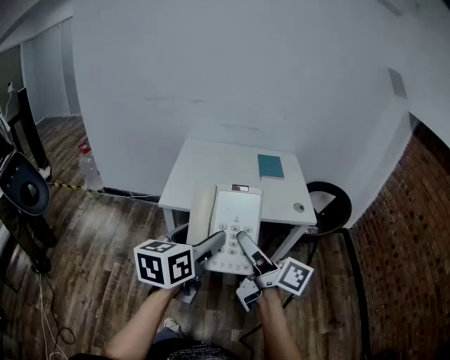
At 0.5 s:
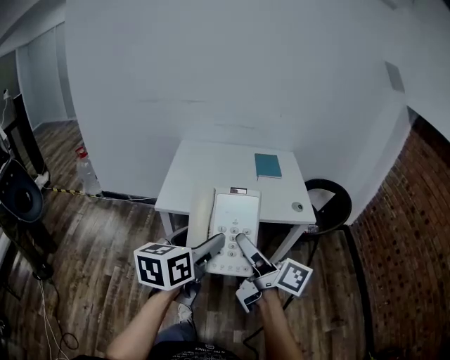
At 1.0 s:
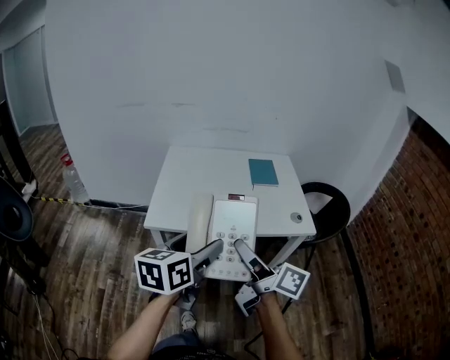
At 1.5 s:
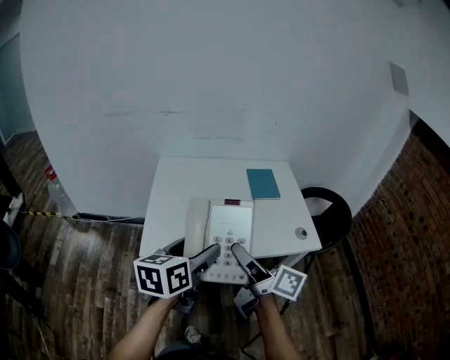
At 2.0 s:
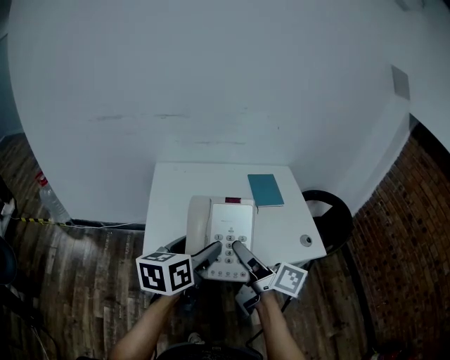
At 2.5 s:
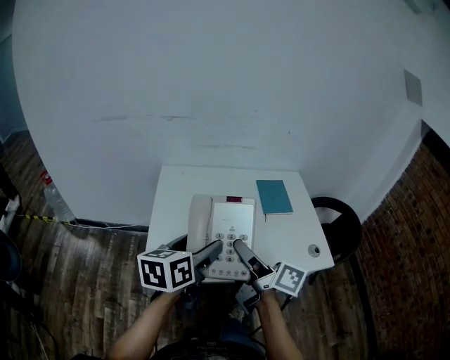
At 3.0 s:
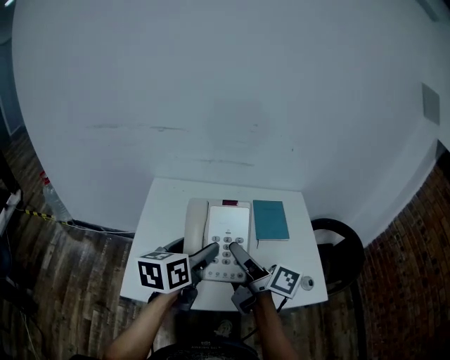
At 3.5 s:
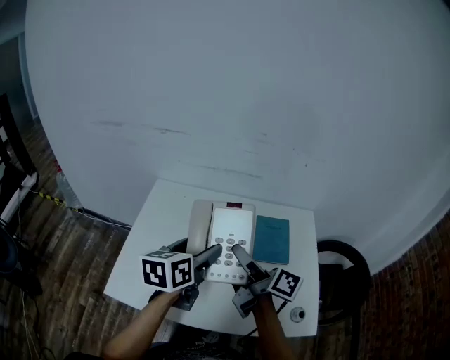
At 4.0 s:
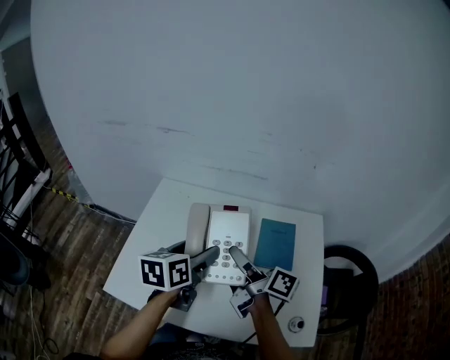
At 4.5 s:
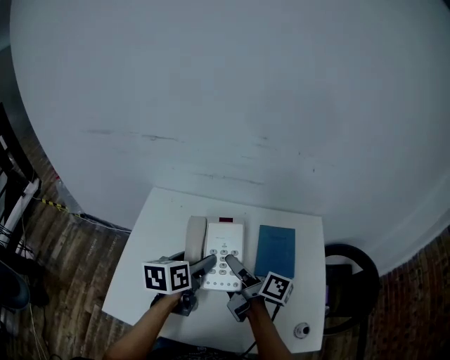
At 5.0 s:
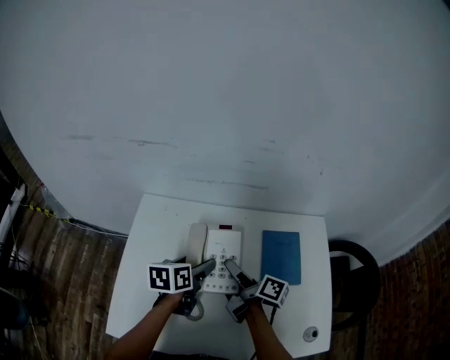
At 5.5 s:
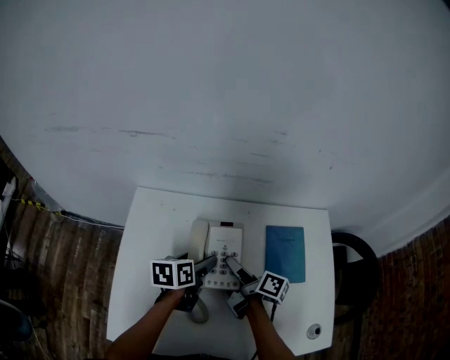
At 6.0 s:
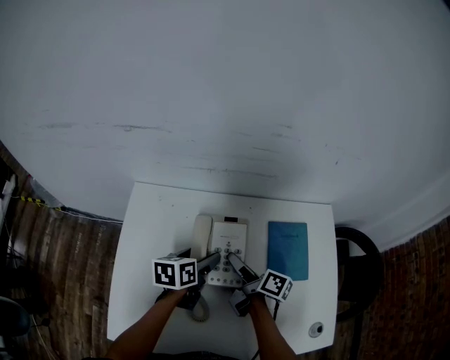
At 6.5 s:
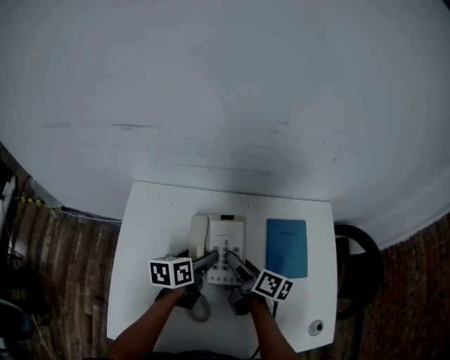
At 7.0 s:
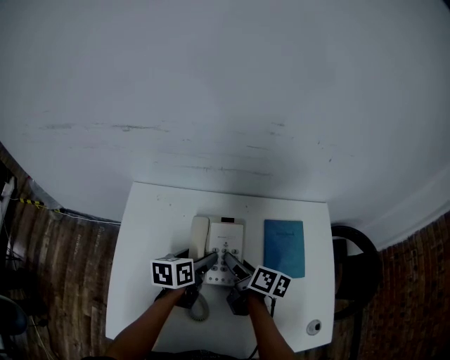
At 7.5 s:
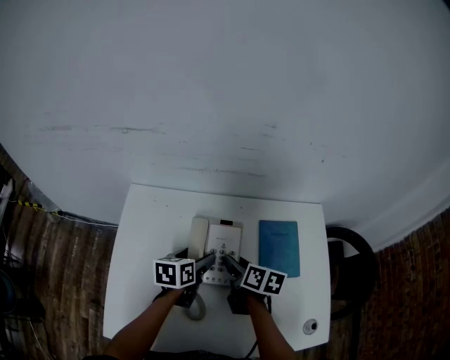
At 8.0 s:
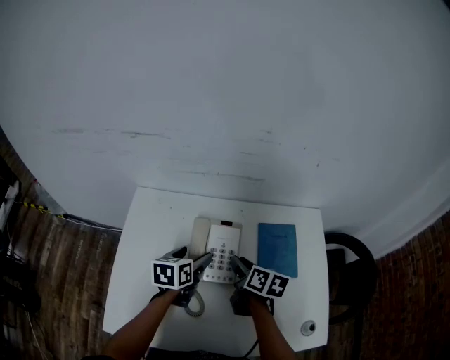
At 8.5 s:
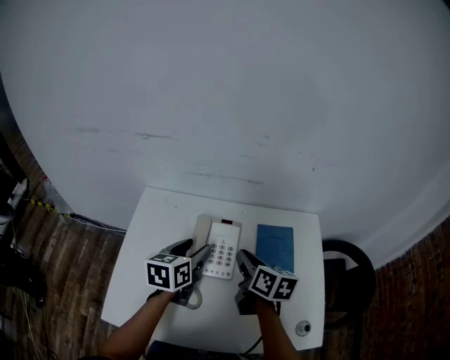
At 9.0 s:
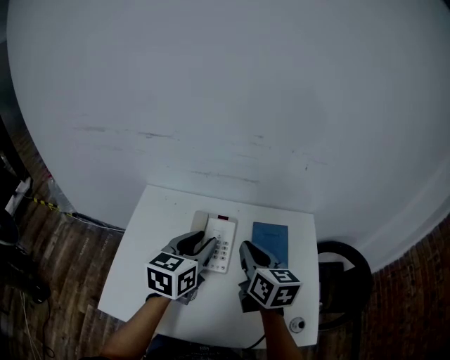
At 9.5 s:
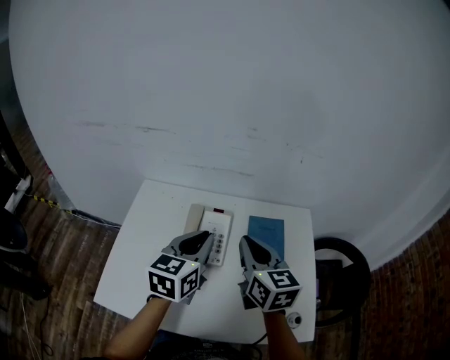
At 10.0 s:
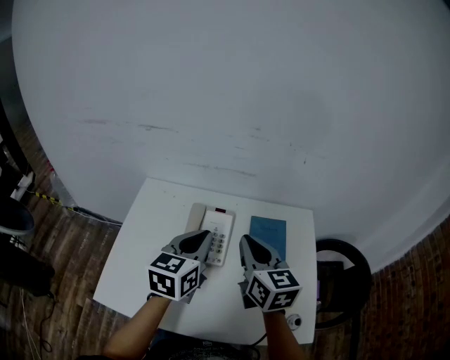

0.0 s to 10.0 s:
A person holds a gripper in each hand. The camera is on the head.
0.0 to 2.0 s: The two grippers go approximately 30 cm forward.
2.0 to 4.0 s: Both grippers travel together forward and to the right, roughly 30 cm. The left gripper swivels roughly 20 degrees; the right gripper turns by roughly 20 degrees.
4.0 to 6.0 s: Both grippers move downward and forward, roughly 20 cm. The right gripper turns by about 20 degrees.
6.0 to 8.0 s: The right gripper changes place by some 5 cm, and rotates approximately 30 degrees.
8.0 to 10.0 s: The right gripper heads upward, covering about 20 cm, turns by about 40 degrees, and closes its fingers. Meanwhile the left gripper moves upward and backward, roughly 20 cm, rotates about 30 degrees, and closes its fingers.

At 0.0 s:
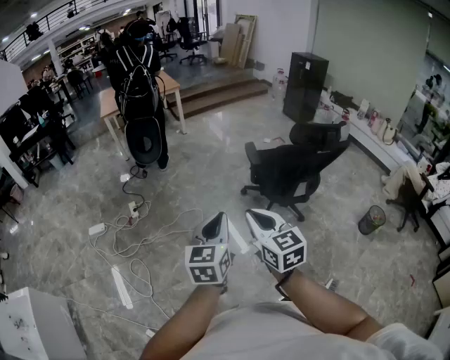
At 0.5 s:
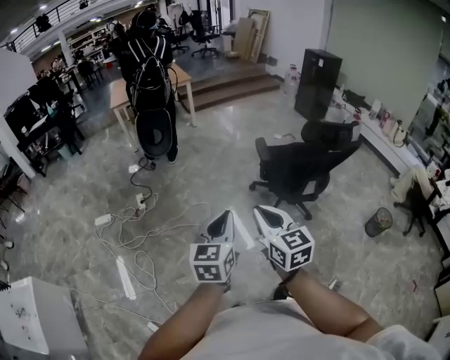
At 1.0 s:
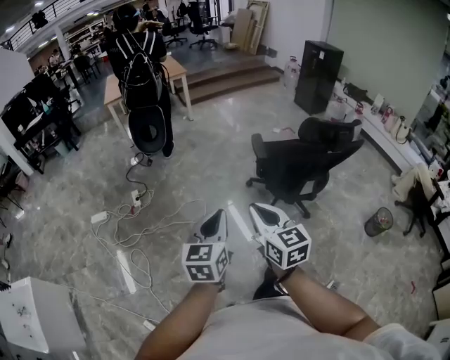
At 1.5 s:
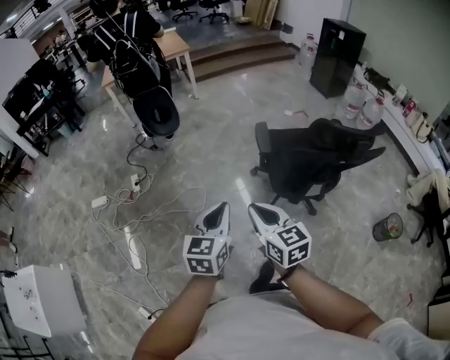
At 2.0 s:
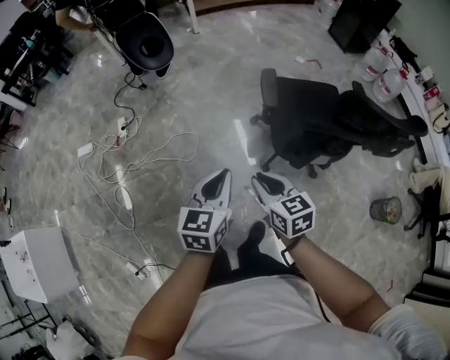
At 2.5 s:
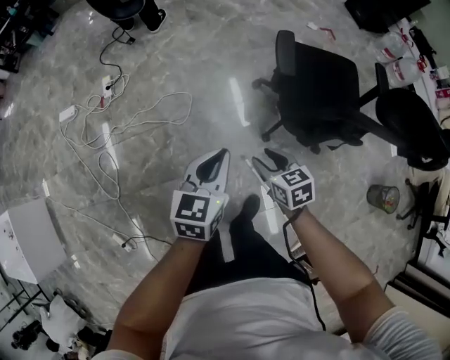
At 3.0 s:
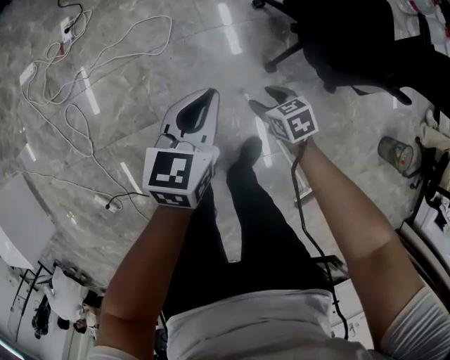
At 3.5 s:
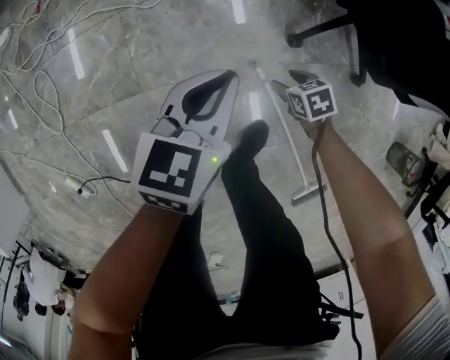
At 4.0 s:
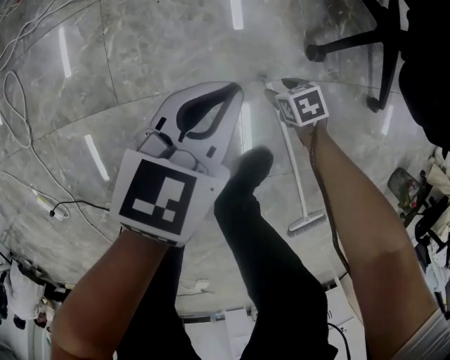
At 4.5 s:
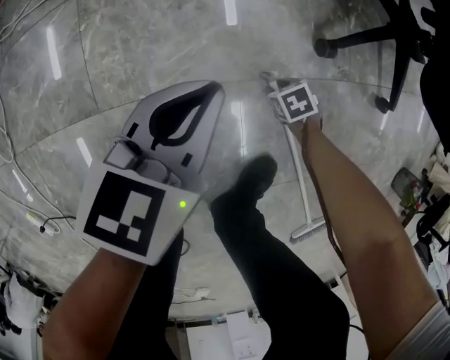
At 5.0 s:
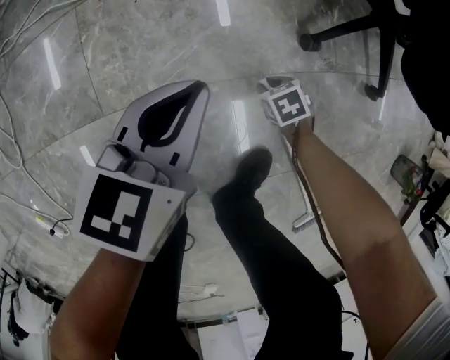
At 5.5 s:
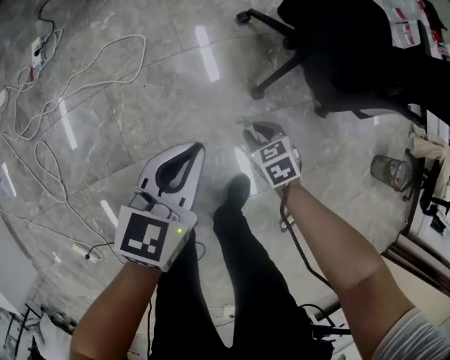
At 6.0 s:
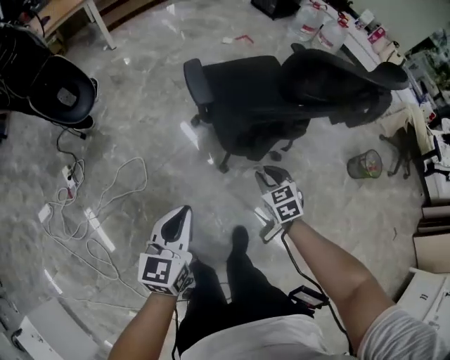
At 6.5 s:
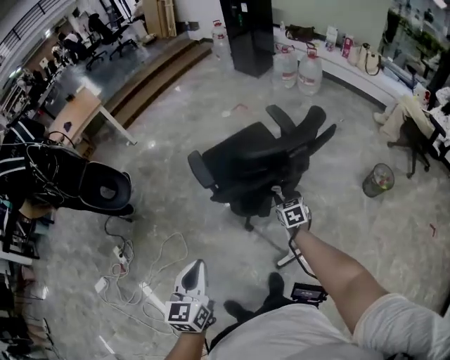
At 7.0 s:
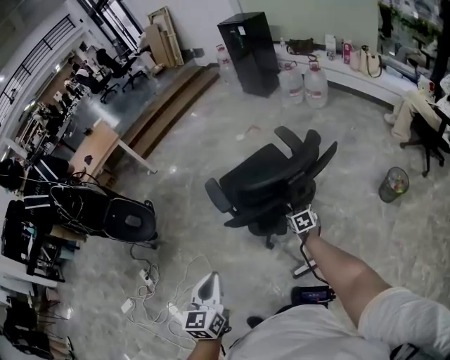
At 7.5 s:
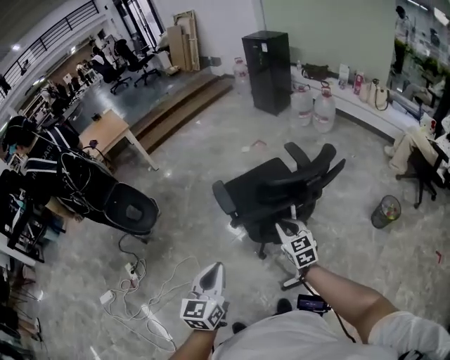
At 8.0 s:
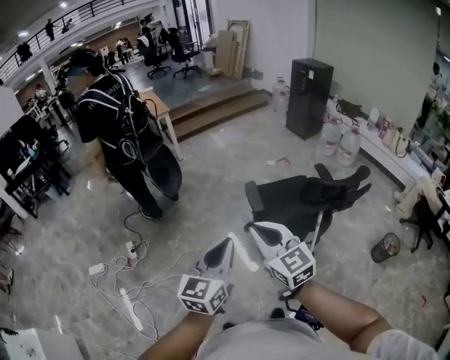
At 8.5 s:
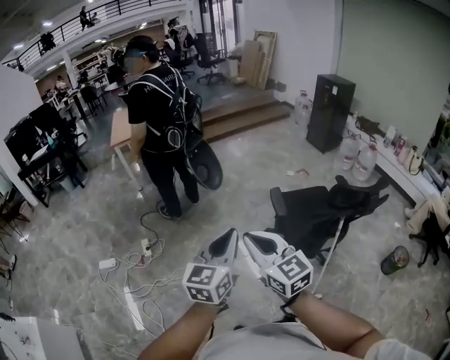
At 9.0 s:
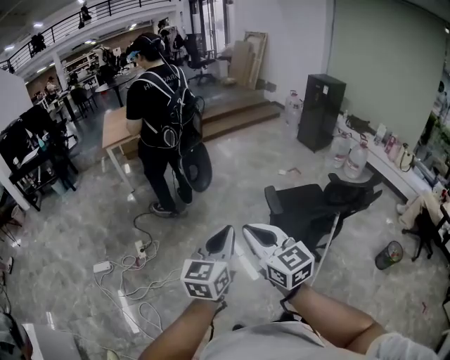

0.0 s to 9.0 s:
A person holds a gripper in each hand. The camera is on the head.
0.0 to 2.0 s: Both grippers move forward, downward and to the right, approximately 40 cm. The right gripper rotates some 30 degrees.
2.0 to 4.5 s: The two grippers go roughly 90 cm downward. The right gripper points its fingers some 50 degrees further downward, and opens up.
4.5 to 7.0 s: Both grippers move upward, about 90 cm. The right gripper angles its fingers upward, by roughly 40 degrees; the left gripper changes its angle by roughly 30 degrees.
7.0 to 9.0 s: The left gripper shifts approximately 35 cm to the left and upward; the right gripper shifts some 70 cm to the left and upward, points its fingers some 40 degrees further upward, and closes up.

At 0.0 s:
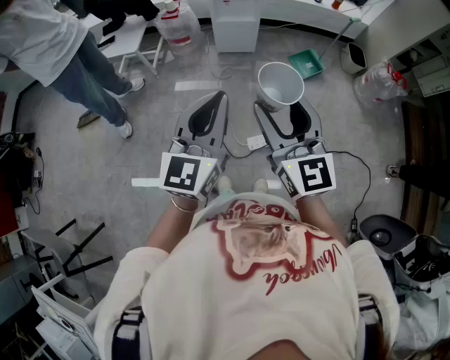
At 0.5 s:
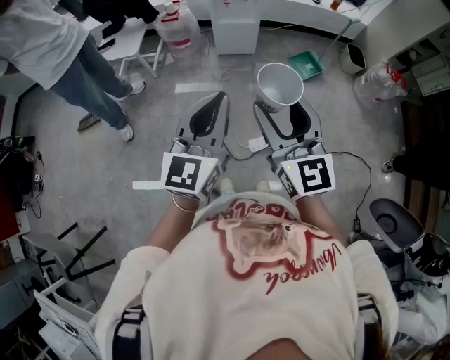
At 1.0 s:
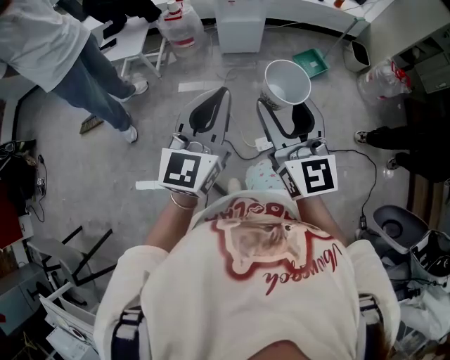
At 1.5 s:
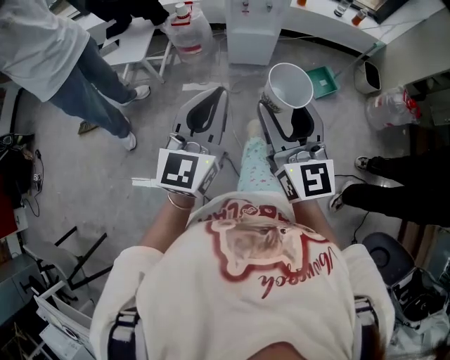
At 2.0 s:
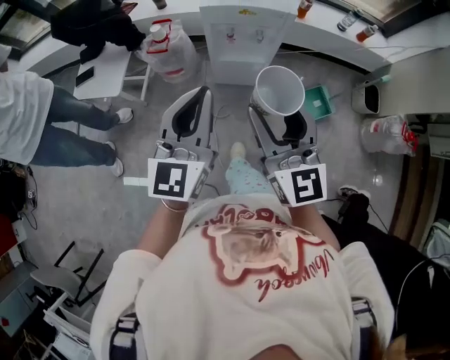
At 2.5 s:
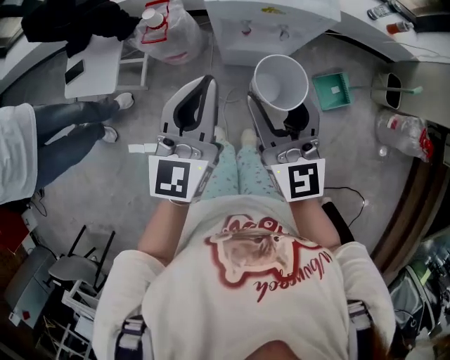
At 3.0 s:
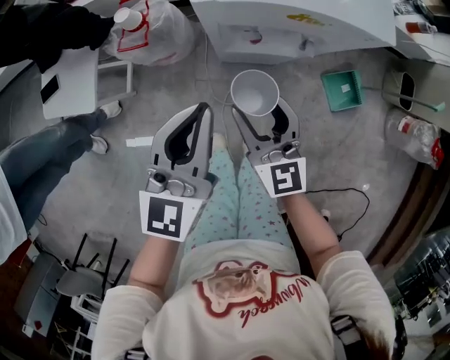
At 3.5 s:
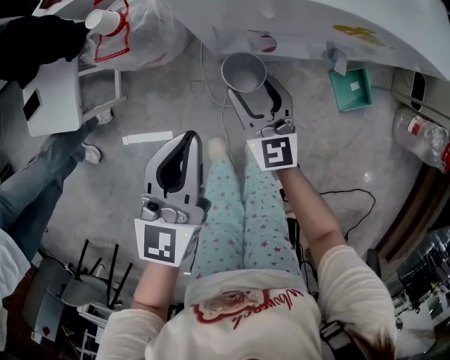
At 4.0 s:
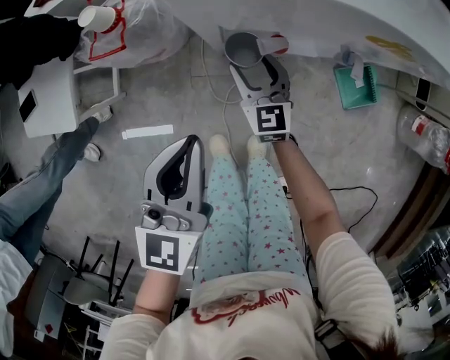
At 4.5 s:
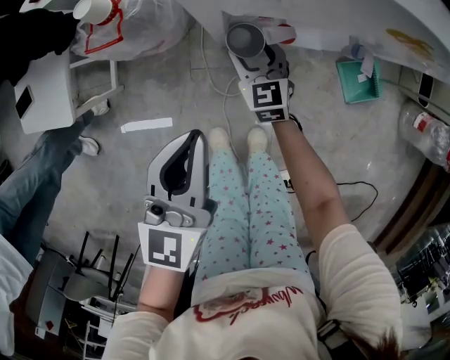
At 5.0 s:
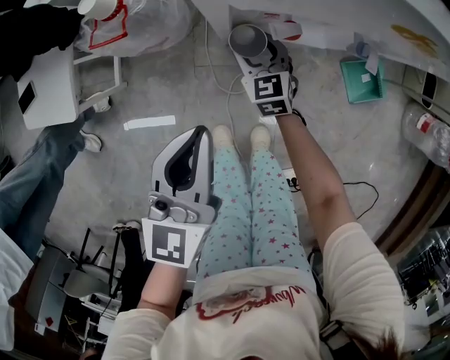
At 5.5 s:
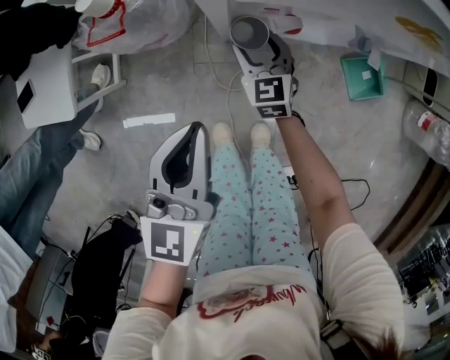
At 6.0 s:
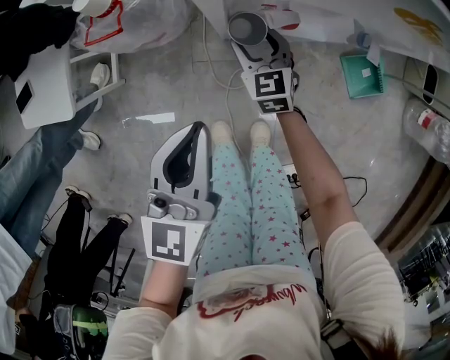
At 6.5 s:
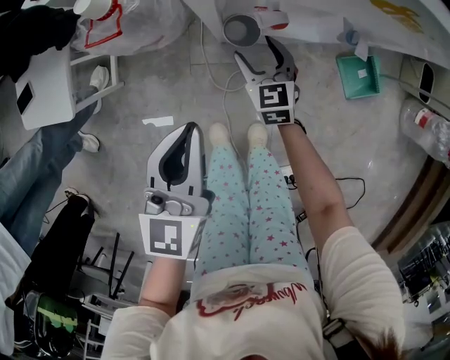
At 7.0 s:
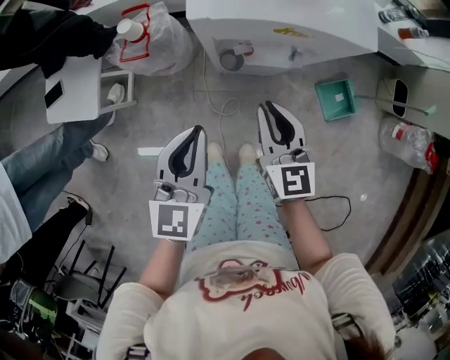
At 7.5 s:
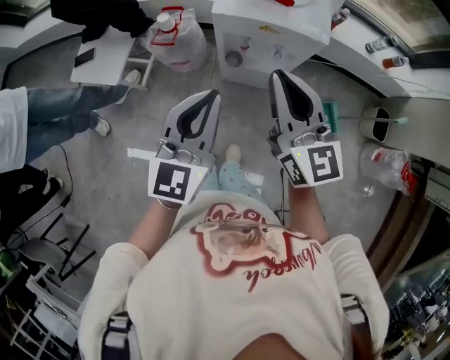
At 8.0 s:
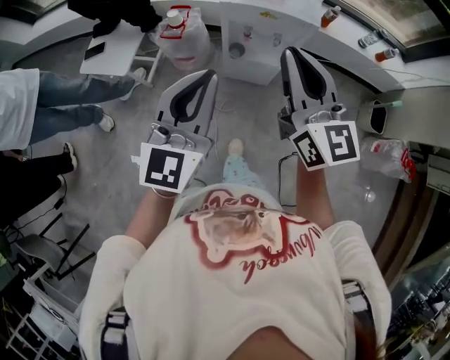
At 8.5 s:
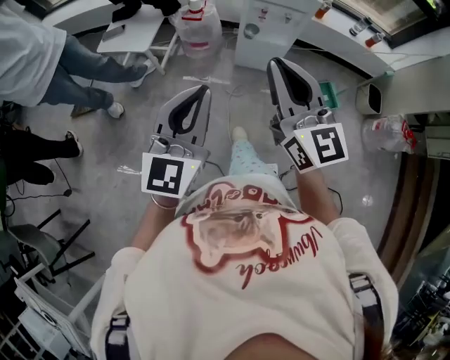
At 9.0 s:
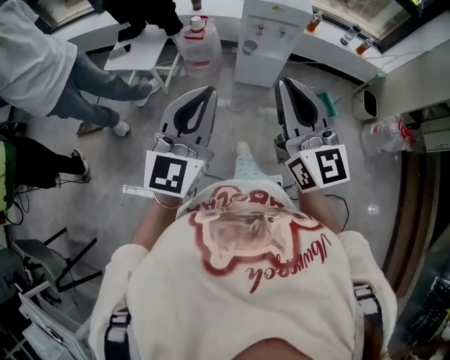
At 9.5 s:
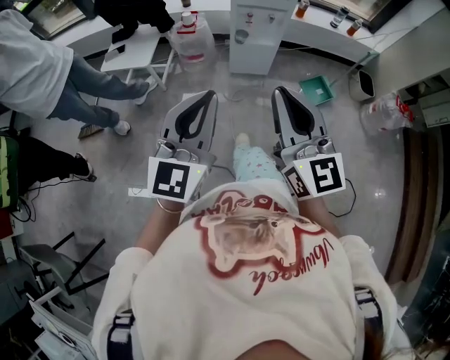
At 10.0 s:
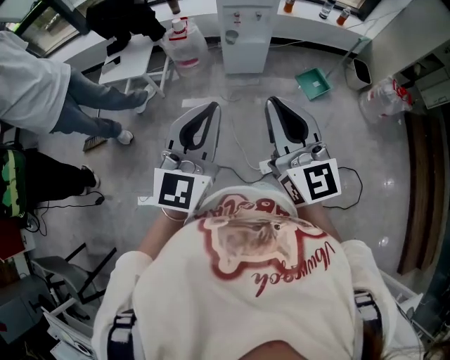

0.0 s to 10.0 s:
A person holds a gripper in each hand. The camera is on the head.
0.0 to 2.0 s: The pair of grippers is taken forward, approximately 50 cm.
2.0 to 4.0 s: The right gripper is displaced downward and forward by about 60 cm, and turns by approximately 30 degrees; the left gripper travels downward and forward by roughly 40 cm, and turns by roughly 20 degrees.
4.0 to 6.0 s: There are only small adjustments of the grippers.
6.0 to 8.0 s: The right gripper shifts some 70 cm upward and backward, tilts its fingers some 40 degrees upward, and closes. Meanwhile the left gripper heads upward and backward, covering roughly 40 cm, and turns by approximately 30 degrees.
8.0 to 10.0 s: The pair of grippers is taken backward, approximately 40 cm.
